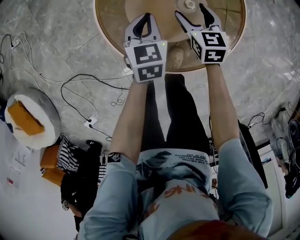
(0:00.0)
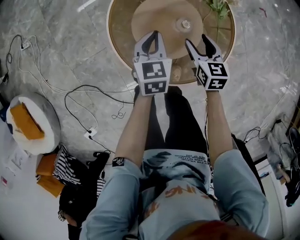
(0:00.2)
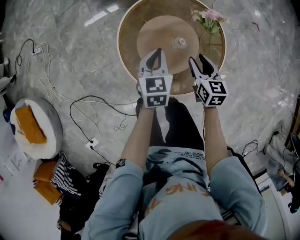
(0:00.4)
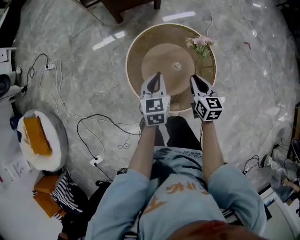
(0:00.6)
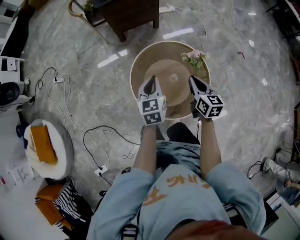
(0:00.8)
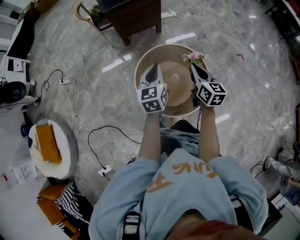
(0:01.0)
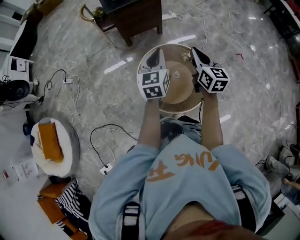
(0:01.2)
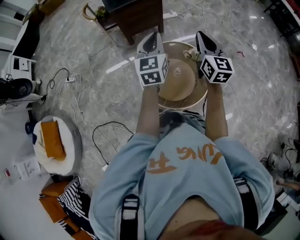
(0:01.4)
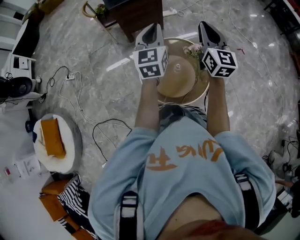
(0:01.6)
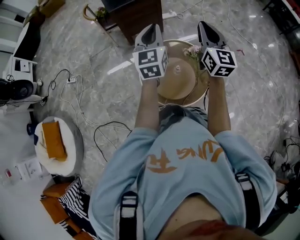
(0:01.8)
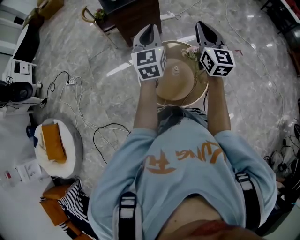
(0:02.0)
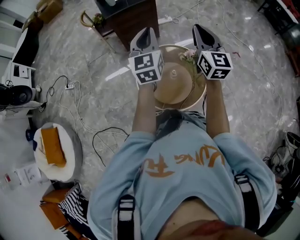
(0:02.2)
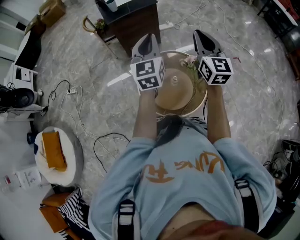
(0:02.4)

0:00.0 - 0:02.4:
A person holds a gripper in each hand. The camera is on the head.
0:00.0 - 0:01.2: Both grippers move upward, roughly 50 cm. The right gripper swivels about 30 degrees, and closes its fingers. The left gripper tips its fingers upward by some 30 degrees.
0:01.2 - 0:02.4: Both grippers move upward, some 15 cm. The right gripper swivels some 20 degrees.

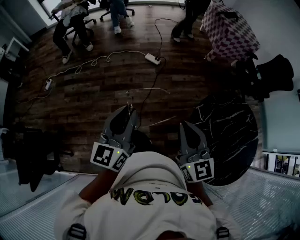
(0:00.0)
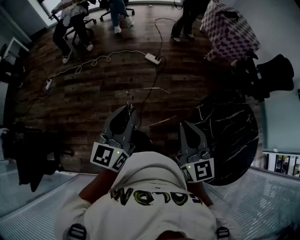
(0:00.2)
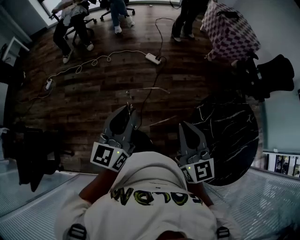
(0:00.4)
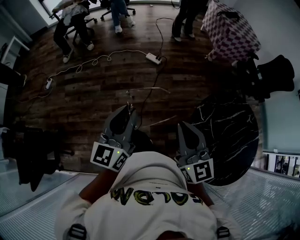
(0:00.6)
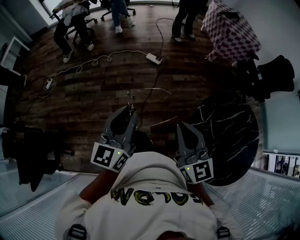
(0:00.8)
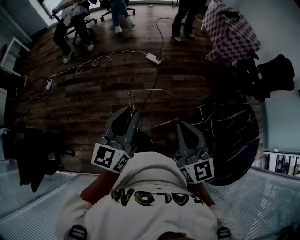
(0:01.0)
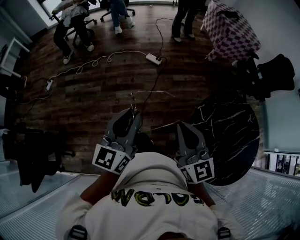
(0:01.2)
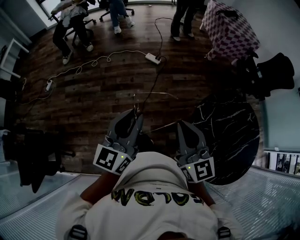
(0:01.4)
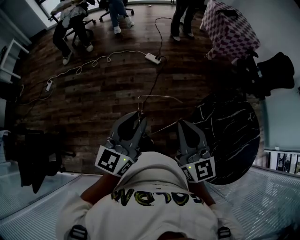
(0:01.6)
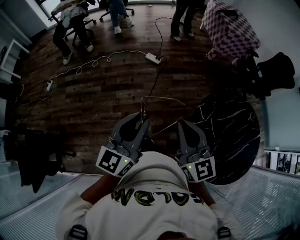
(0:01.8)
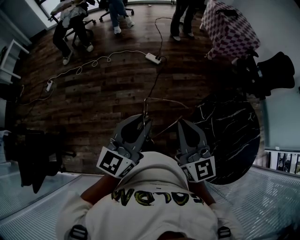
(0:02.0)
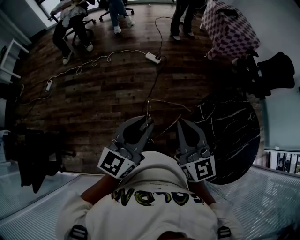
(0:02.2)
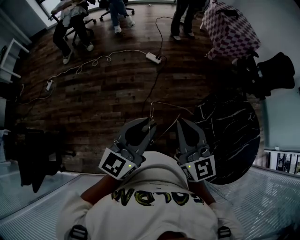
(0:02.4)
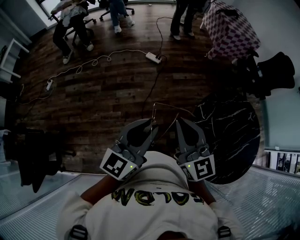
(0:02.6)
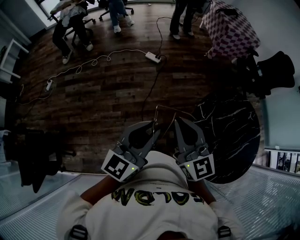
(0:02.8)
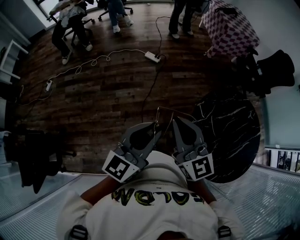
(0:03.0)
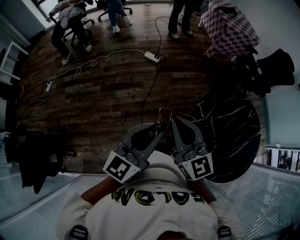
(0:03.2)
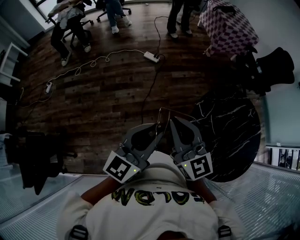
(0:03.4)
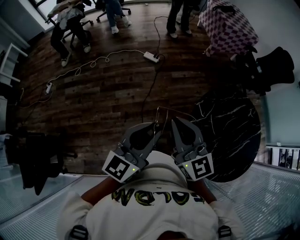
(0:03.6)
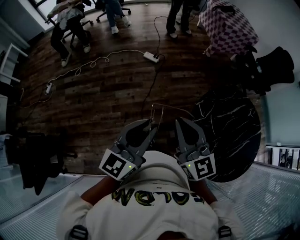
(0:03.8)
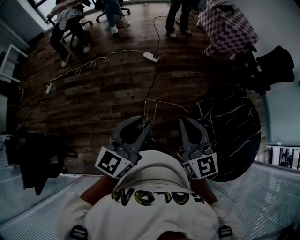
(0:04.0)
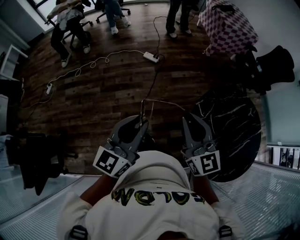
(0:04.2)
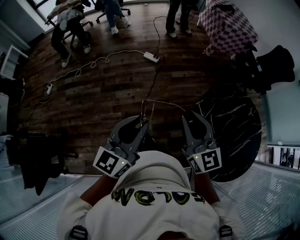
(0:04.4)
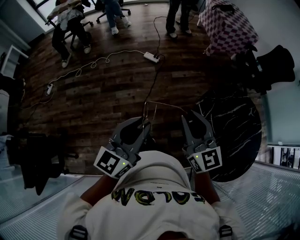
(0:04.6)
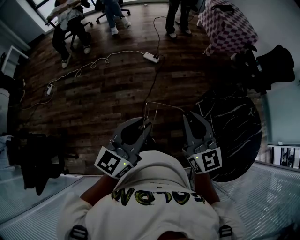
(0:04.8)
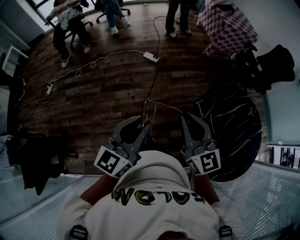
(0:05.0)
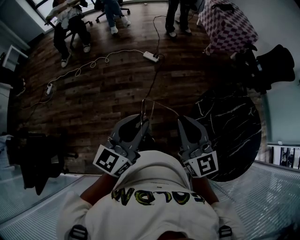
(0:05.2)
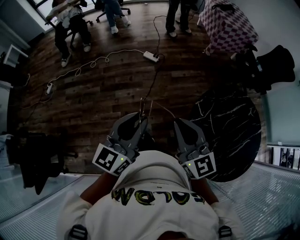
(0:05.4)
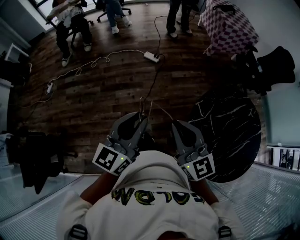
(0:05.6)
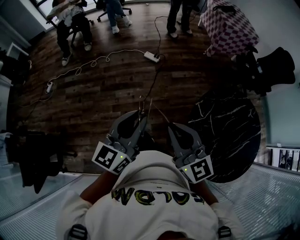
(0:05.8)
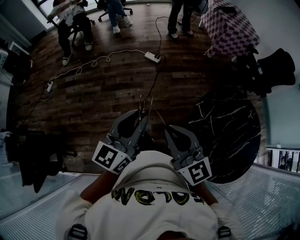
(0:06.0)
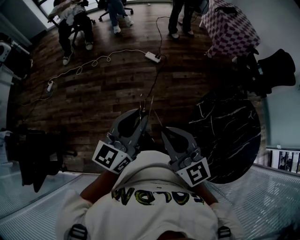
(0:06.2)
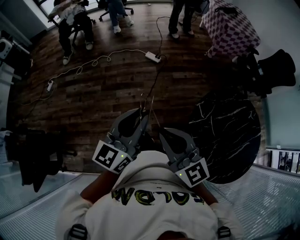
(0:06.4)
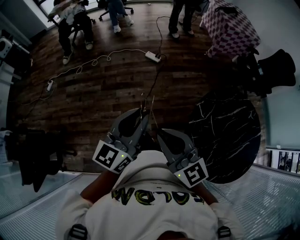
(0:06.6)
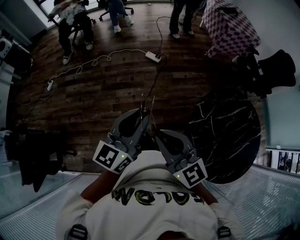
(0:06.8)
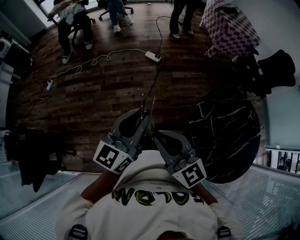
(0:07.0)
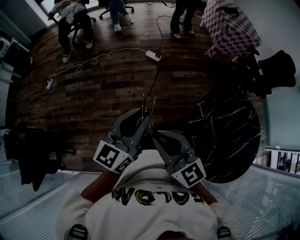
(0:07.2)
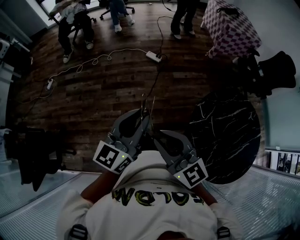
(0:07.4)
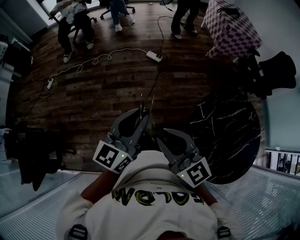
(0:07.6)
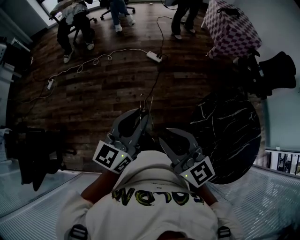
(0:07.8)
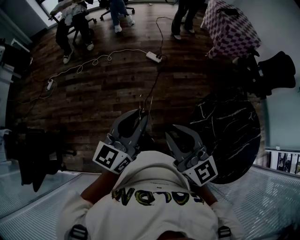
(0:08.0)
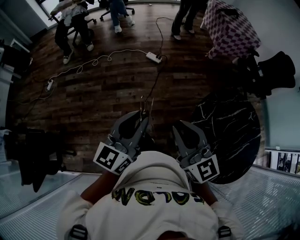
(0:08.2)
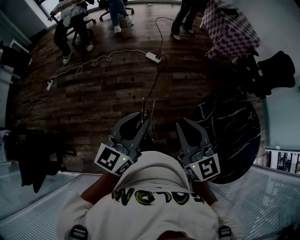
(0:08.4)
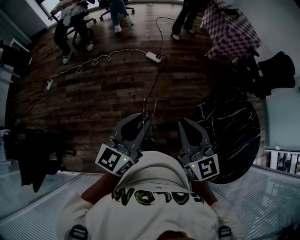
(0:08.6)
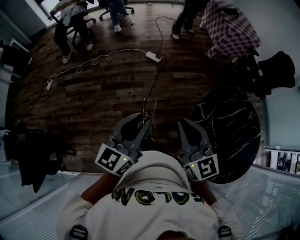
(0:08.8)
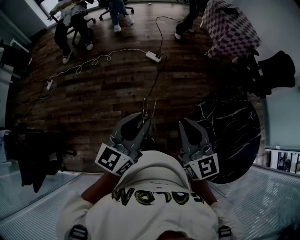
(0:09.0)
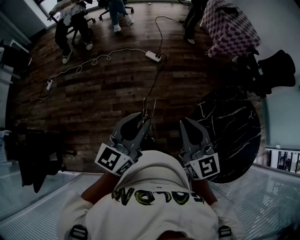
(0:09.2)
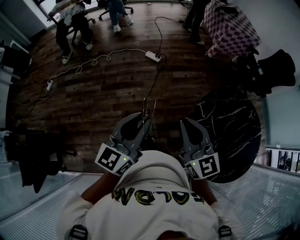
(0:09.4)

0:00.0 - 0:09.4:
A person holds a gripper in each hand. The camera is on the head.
0:00.0 - 0:01.6: There are only small adjustments of the grippers.
0:01.6 - 0:03.2: The left gripper goes roughly 5 cm to the right.
0:03.2 - 0:04.8: The right gripper heads to the right, covering approximately 5 cm.
0:04.8 - 0:06.2: The right gripper moves to the left and backward, about 10 cm.
0:06.2 - 0:07.8: The grippers move only a little.
0:07.8 - 0:09.4: The right gripper is displaced to the right by about 5 cm.

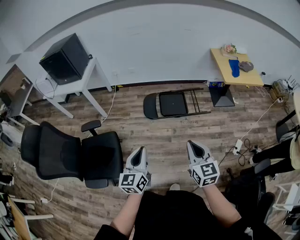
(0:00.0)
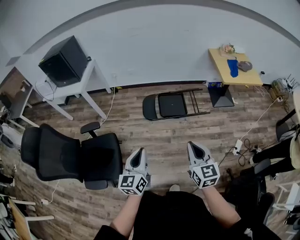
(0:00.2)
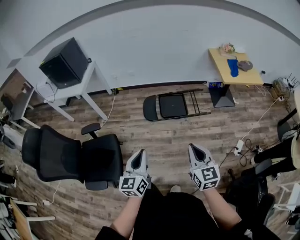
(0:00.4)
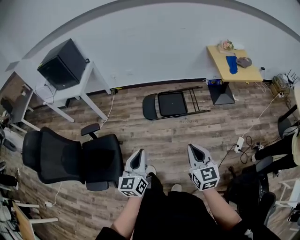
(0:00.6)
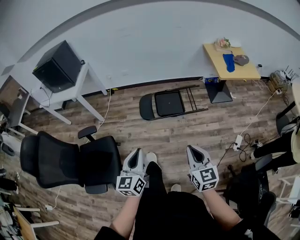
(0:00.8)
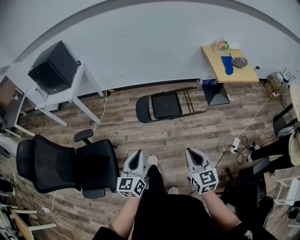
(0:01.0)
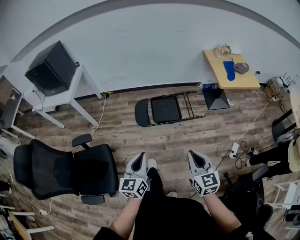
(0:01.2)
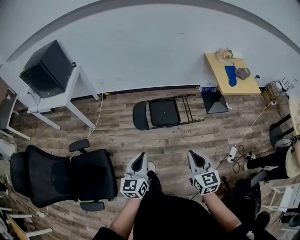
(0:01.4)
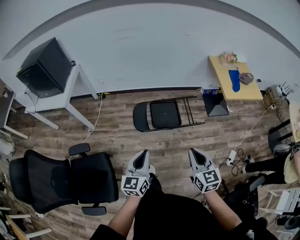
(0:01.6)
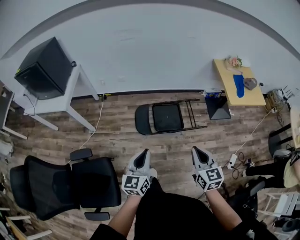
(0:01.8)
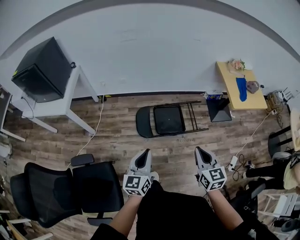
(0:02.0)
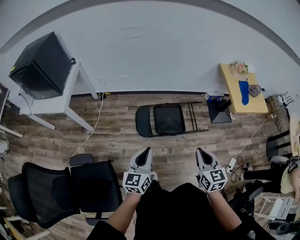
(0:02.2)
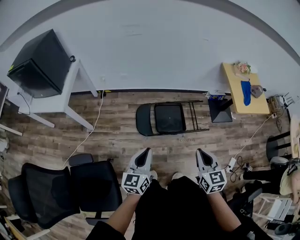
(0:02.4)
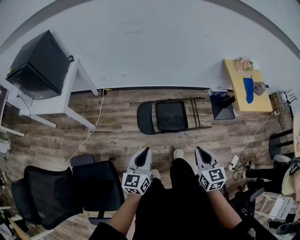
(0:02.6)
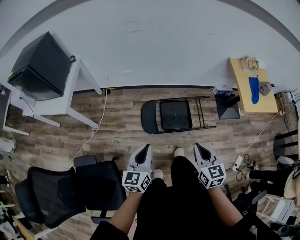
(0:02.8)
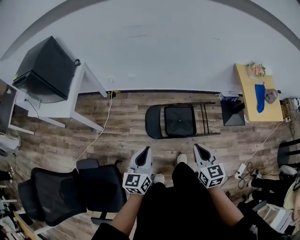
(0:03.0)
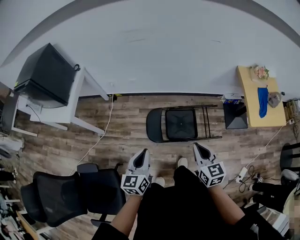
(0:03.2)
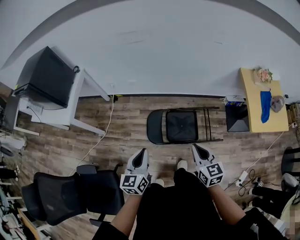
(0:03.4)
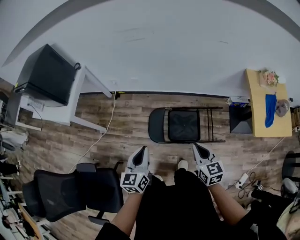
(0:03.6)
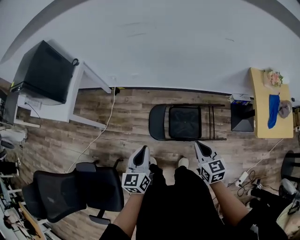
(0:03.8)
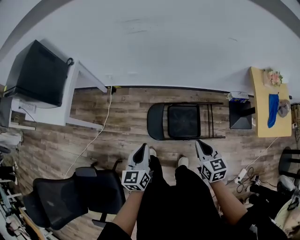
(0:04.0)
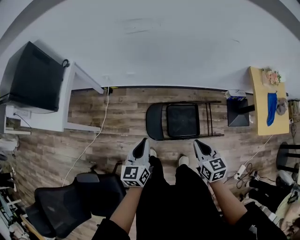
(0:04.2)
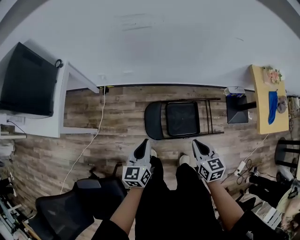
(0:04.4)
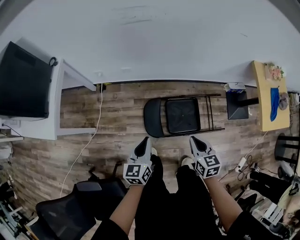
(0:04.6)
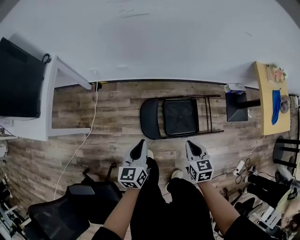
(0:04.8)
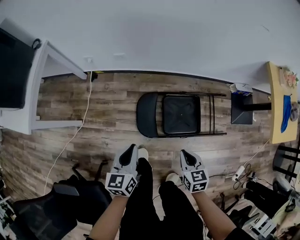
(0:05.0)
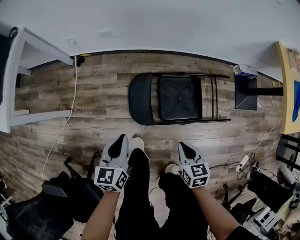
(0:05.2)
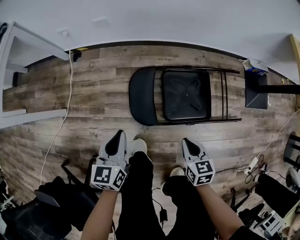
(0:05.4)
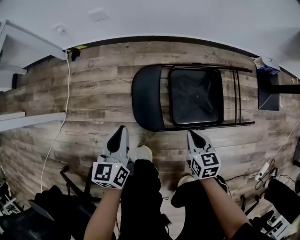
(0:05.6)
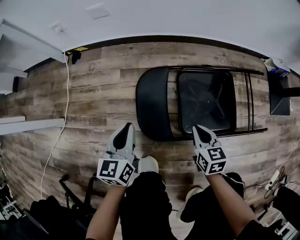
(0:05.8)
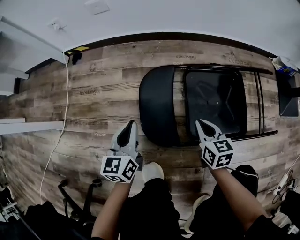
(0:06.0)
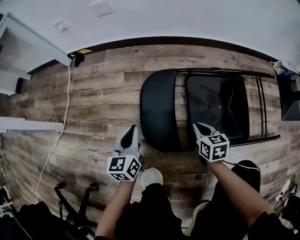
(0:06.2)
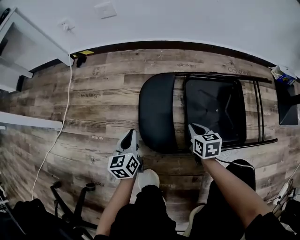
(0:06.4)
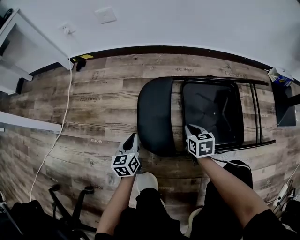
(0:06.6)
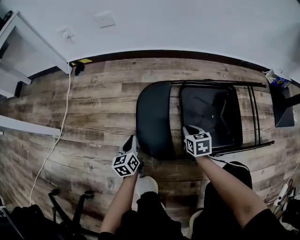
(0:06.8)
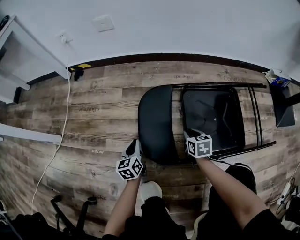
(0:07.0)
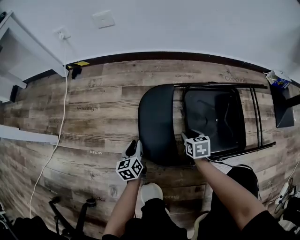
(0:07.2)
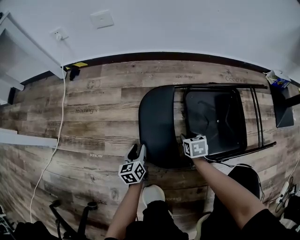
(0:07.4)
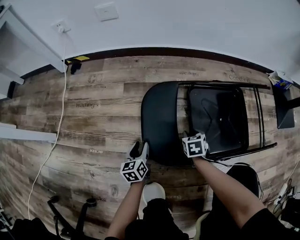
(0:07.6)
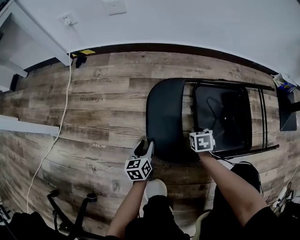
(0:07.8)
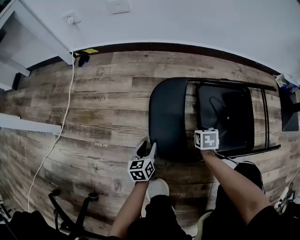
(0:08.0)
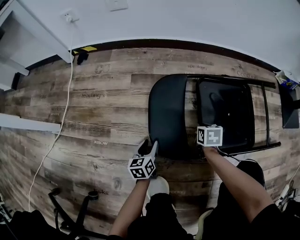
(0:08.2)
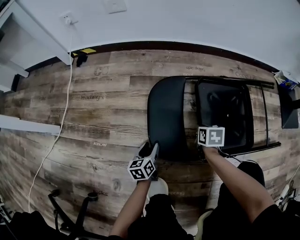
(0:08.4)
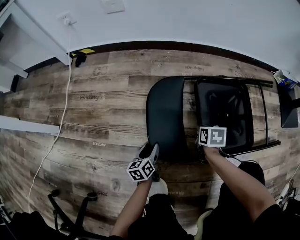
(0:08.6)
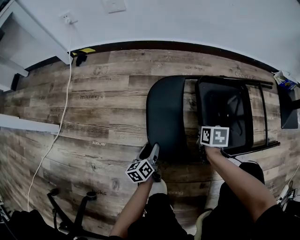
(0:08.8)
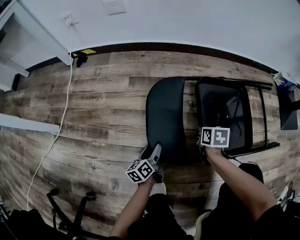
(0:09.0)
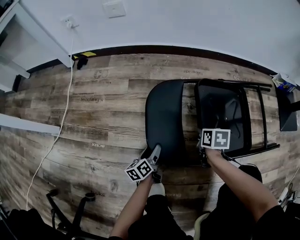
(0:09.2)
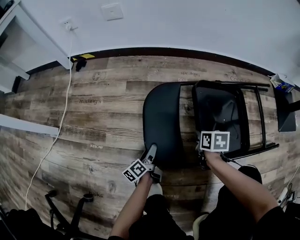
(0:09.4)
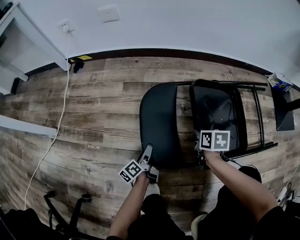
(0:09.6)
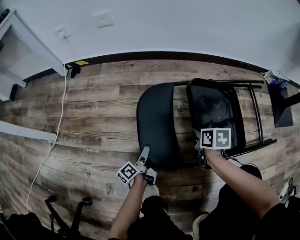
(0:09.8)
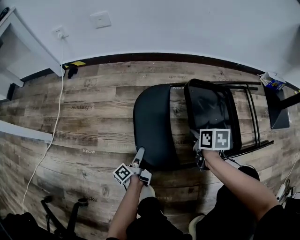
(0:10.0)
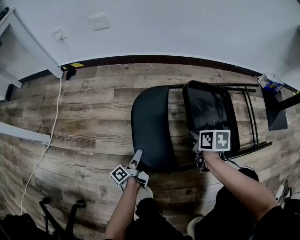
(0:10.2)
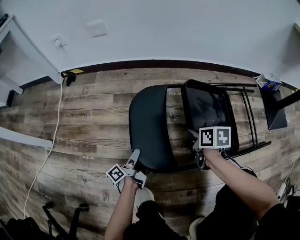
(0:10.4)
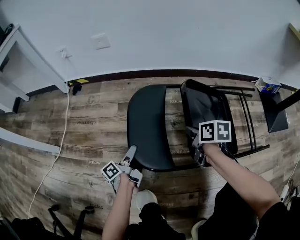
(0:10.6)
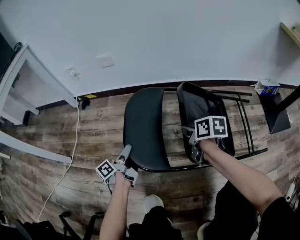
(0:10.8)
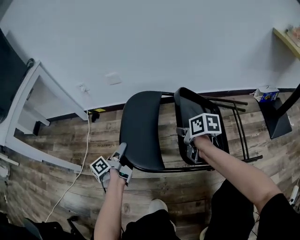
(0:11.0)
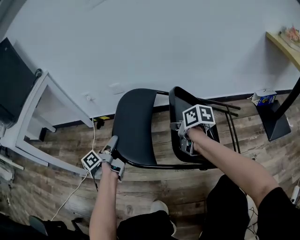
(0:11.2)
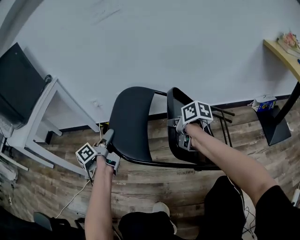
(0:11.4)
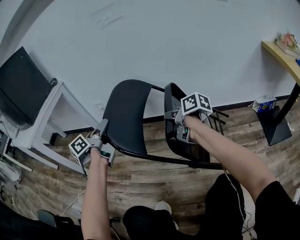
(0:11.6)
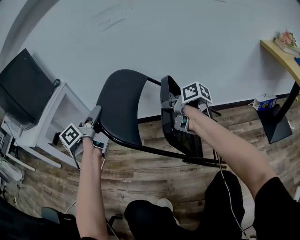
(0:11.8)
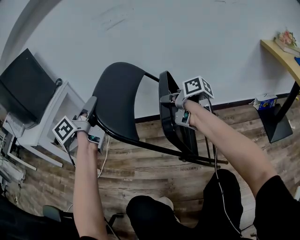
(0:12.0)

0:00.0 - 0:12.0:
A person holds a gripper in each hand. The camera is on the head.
0:00.0 - 0:01.6: Both grippers travel together forward, some 20 cm.
0:01.6 - 0:03.0: Both grippers travel together forward, about 25 cm.
0:03.0 - 0:04.4: The right gripper is displaced forward and downward by some 25 cm. The left gripper shifts approximately 25 cm forward.
0:04.4 - 0:06.0: Both grippers move downward, some 70 cm.
0:06.0 - 0:07.6: Both grippers move downward, some 20 cm. The left gripper opens its fingers. The right gripper turns by some 30 degrees, and opens.
0:07.6 - 0:09.0: The left gripper changes place by approximately 5 cm, and turns by approximately 30 degrees. The right gripper travels upward by roughly 5 cm, rotates roughly 20 degrees, and closes up.
0:09.0 - 0:10.4: The left gripper changes place by roughly 5 cm, changes its angle by approximately 40 degrees, and closes its fingers. The right gripper shifts approximately 10 cm upward.
0:10.4 - 0:12.0: Both grippers travel together upward, about 60 cm. The right gripper points its fingers approximately 40 degrees further upward, while the left gripper turns by some 40 degrees.
